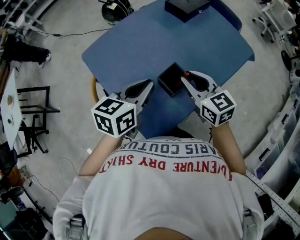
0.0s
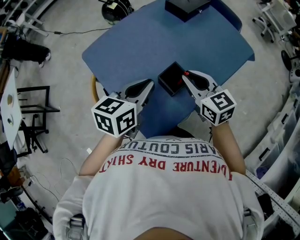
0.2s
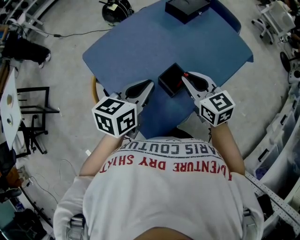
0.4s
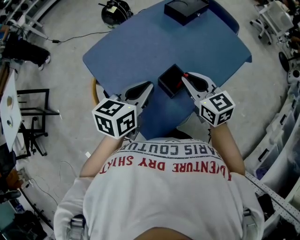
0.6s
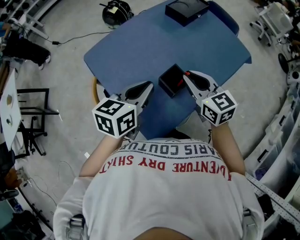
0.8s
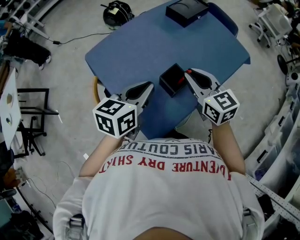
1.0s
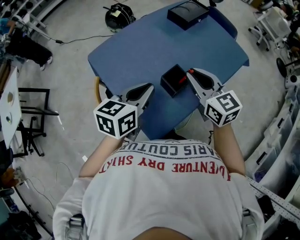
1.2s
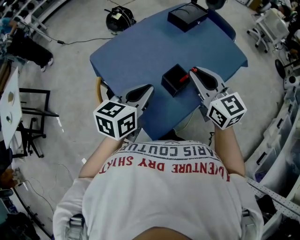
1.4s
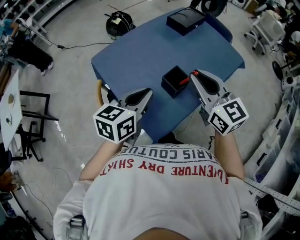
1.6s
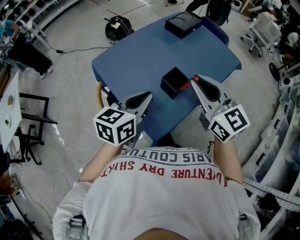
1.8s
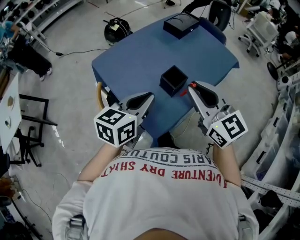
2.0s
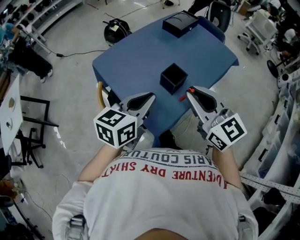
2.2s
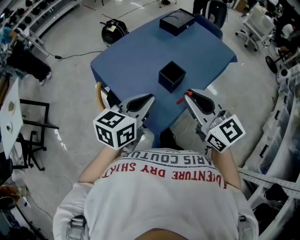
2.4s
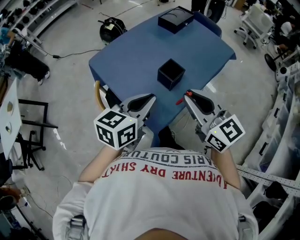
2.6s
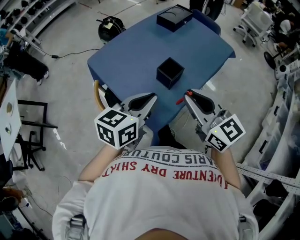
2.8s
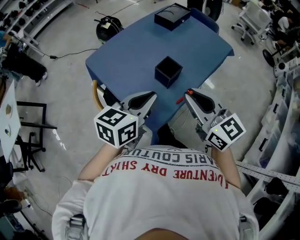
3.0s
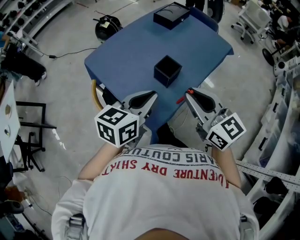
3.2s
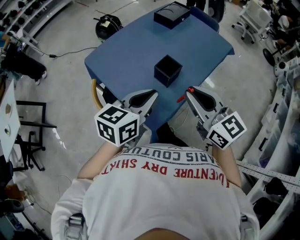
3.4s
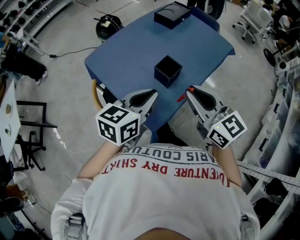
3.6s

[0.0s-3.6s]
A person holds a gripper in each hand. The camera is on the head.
0.0s to 1.8s: The right gripper shifts roughly 20 cm upward and backward, while the left gripper goes about 10 cm backward.
1.8s to 3.6s: The right gripper is displaced backward by approximately 5 cm; the left gripper changes place by approximately 5 cm.

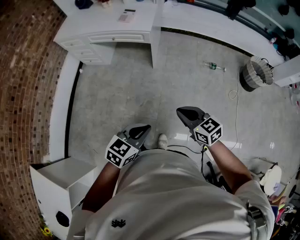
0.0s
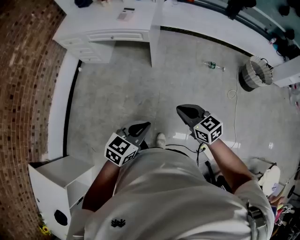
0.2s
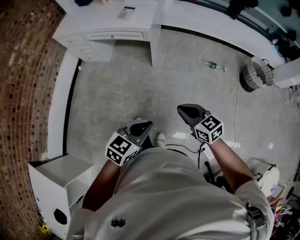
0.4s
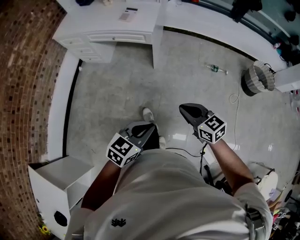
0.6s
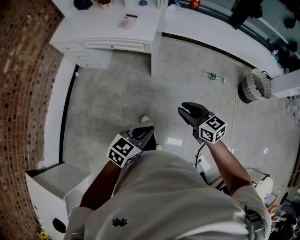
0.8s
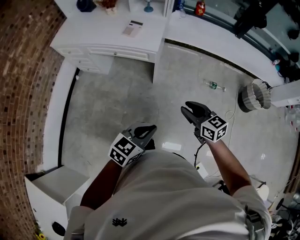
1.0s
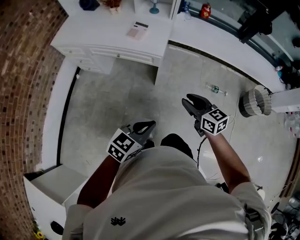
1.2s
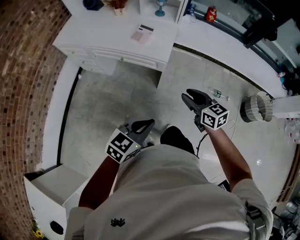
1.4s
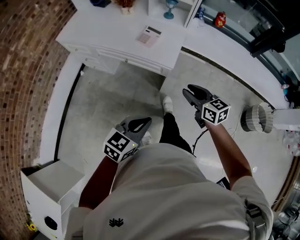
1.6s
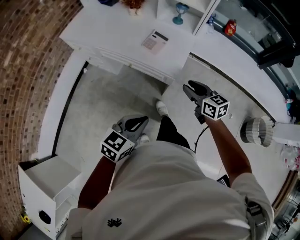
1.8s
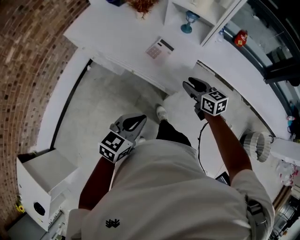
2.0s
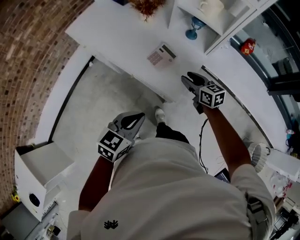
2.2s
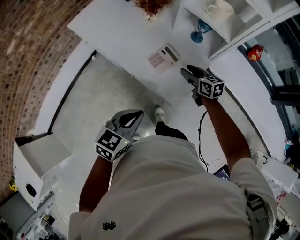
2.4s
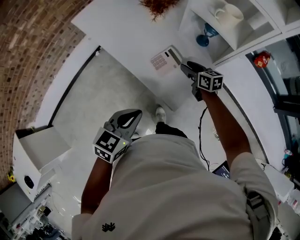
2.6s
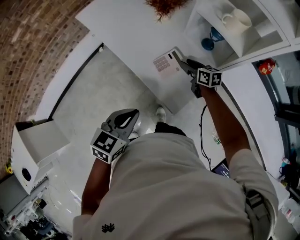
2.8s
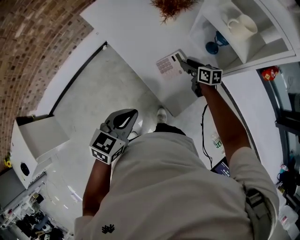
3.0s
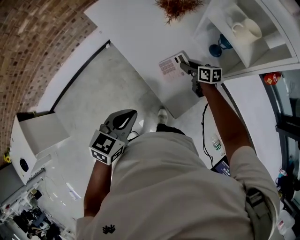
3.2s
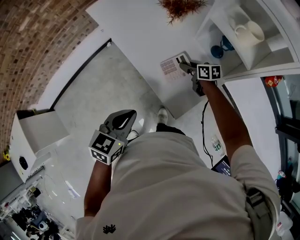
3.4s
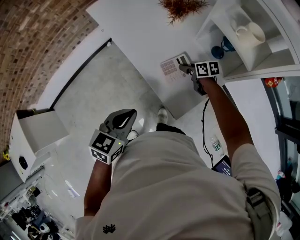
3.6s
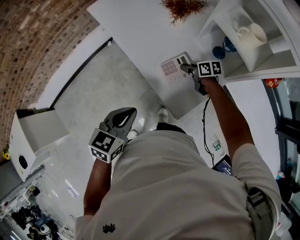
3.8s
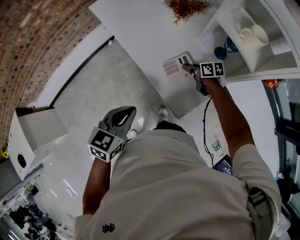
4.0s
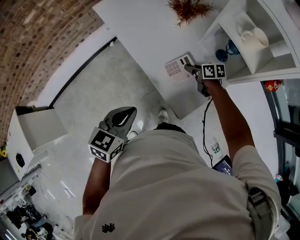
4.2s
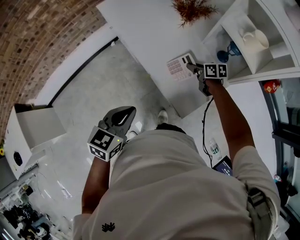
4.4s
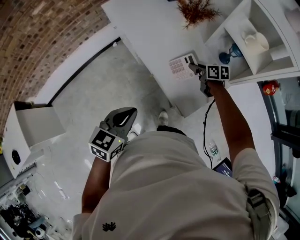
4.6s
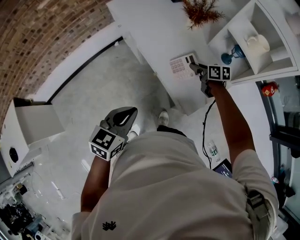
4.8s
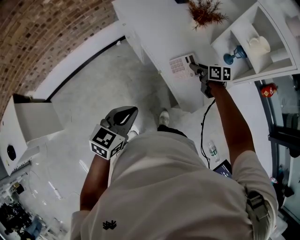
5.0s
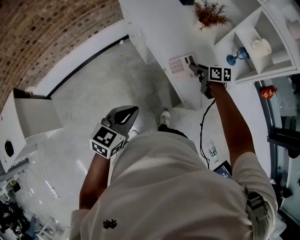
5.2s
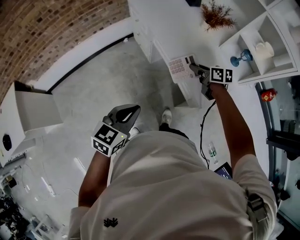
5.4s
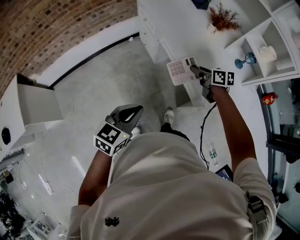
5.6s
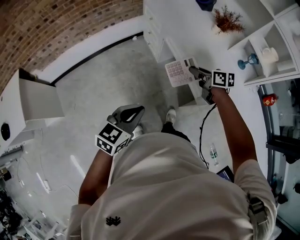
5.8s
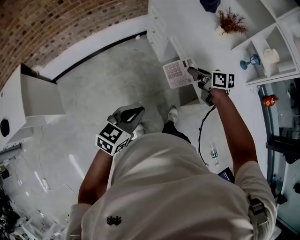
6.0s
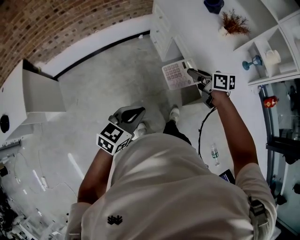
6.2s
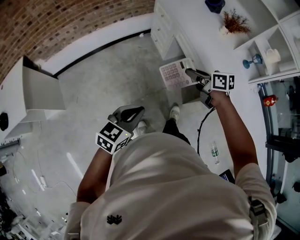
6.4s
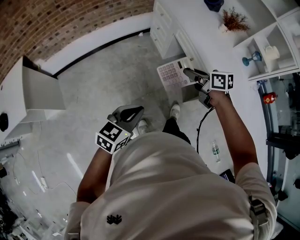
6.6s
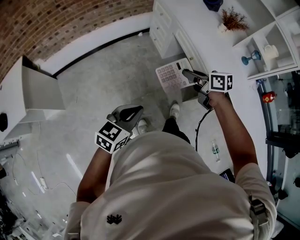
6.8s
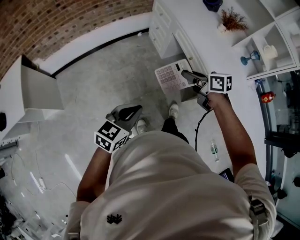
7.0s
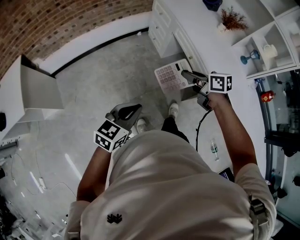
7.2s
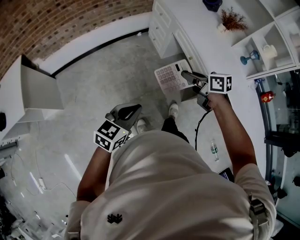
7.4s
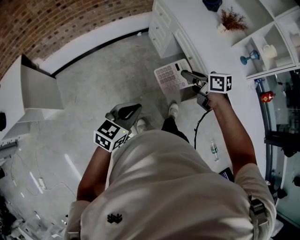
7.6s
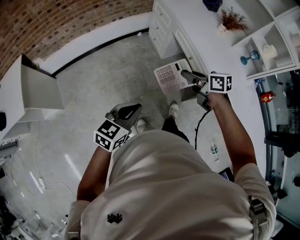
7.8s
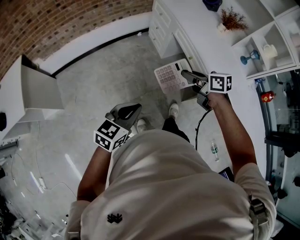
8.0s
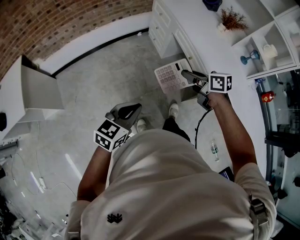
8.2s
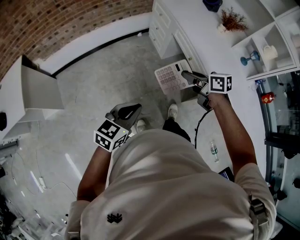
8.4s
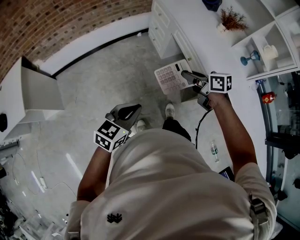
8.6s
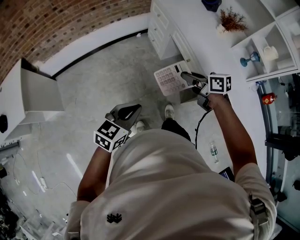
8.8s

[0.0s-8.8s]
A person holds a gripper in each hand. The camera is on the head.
0.0s to 1.4s: The grippers both shift forward by roughly 30 cm. The right gripper opens up.
1.4s to 3.0s: The right gripper moves roughly 60 cm, and rotates about 30 degrees. Meanwhile the left gripper shifts by roughly 35 cm, and rotates approximately 40 degrees.
3.0s to 4.4s: The grippers both shift to the left by approximately 5 cm. The right gripper closes its fingers.
4.4s to 5.8s: The left gripper shifts some 25 cm to the left and backward. Meanwhile the right gripper is displaced to the left, backward and upward by approximately 30 cm.
5.8s to 7.4s: The two grippers go some 15 cm to the left and backward.
7.4s to 8.8s: The grippers stay close to where they were, moving slightly.

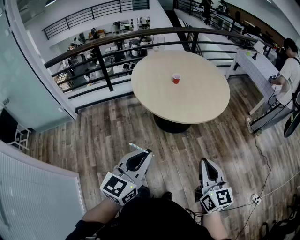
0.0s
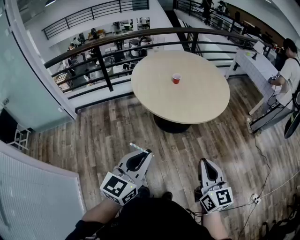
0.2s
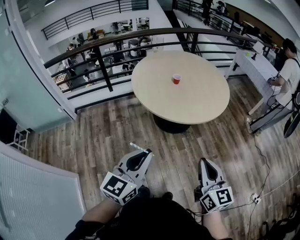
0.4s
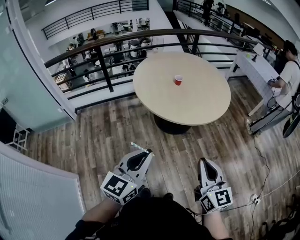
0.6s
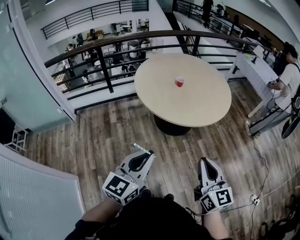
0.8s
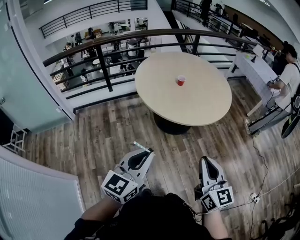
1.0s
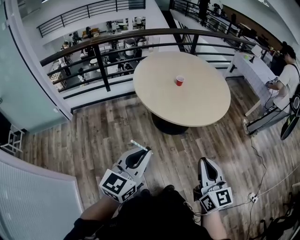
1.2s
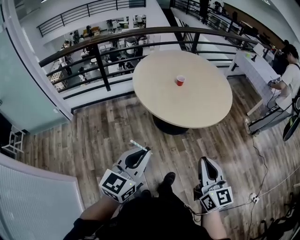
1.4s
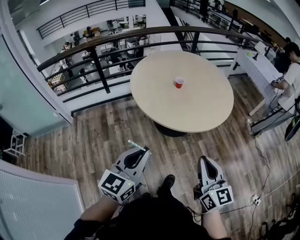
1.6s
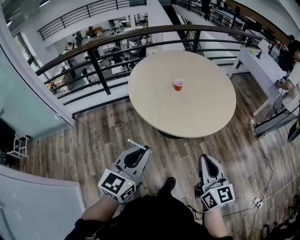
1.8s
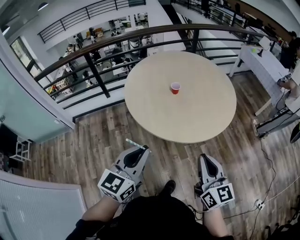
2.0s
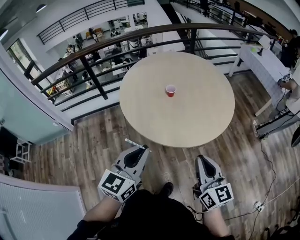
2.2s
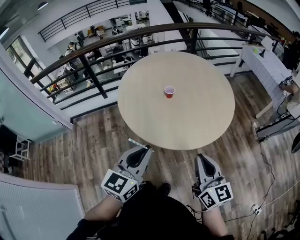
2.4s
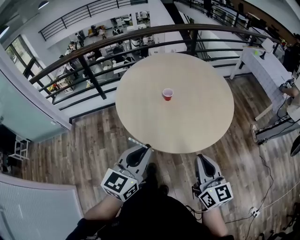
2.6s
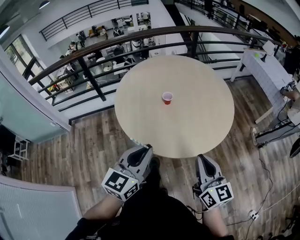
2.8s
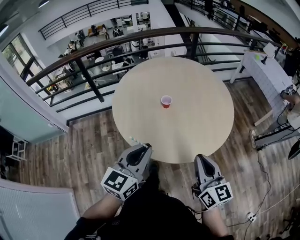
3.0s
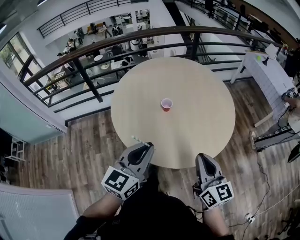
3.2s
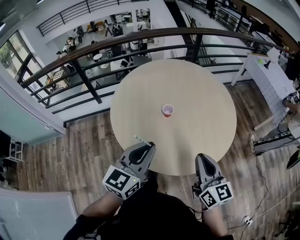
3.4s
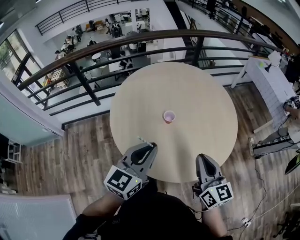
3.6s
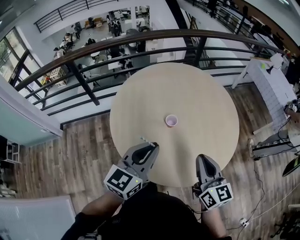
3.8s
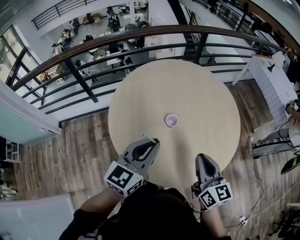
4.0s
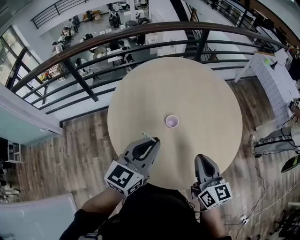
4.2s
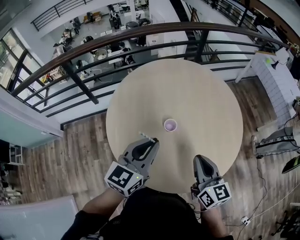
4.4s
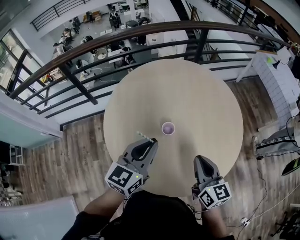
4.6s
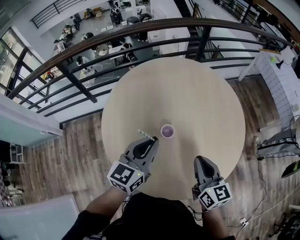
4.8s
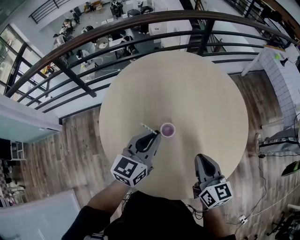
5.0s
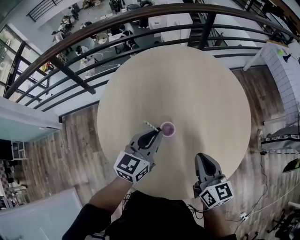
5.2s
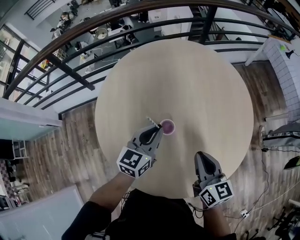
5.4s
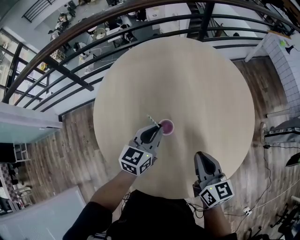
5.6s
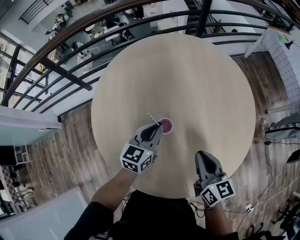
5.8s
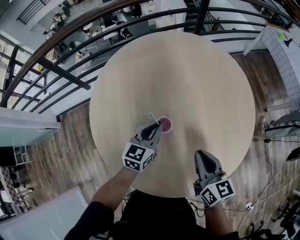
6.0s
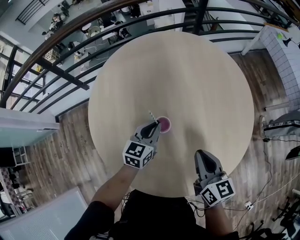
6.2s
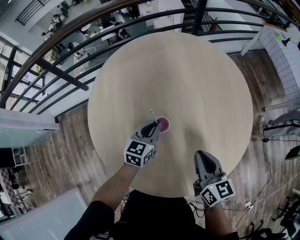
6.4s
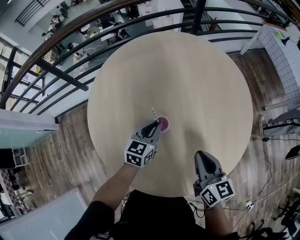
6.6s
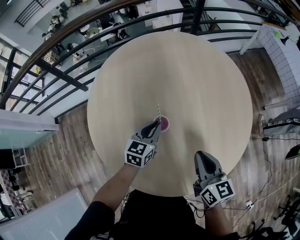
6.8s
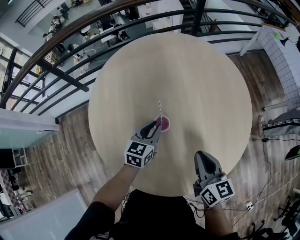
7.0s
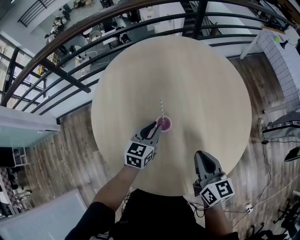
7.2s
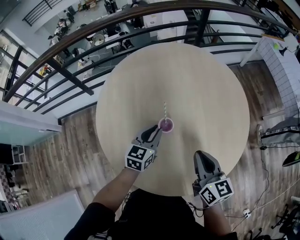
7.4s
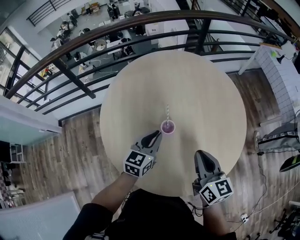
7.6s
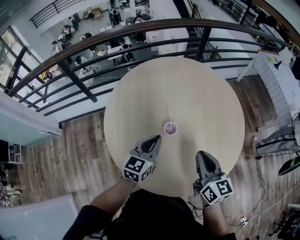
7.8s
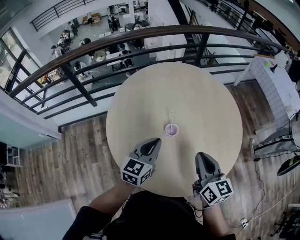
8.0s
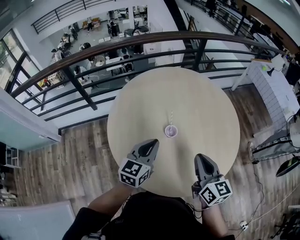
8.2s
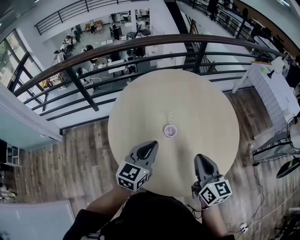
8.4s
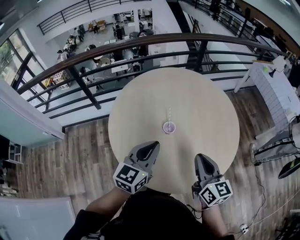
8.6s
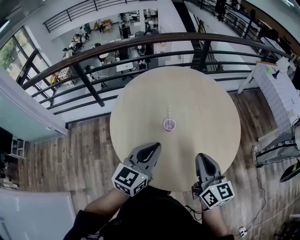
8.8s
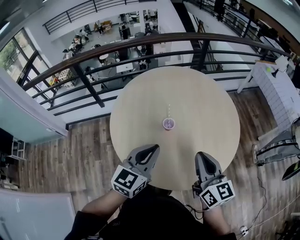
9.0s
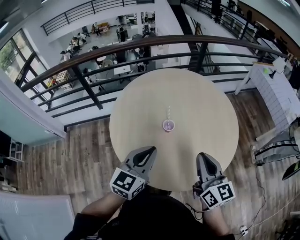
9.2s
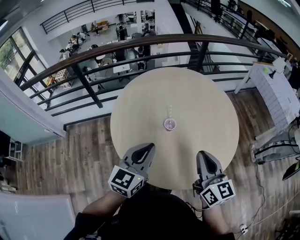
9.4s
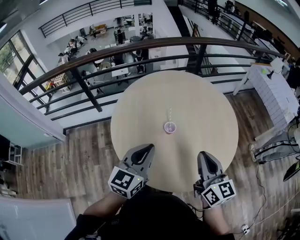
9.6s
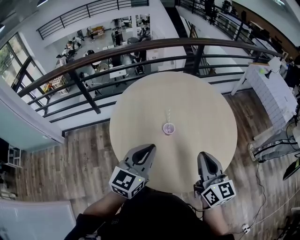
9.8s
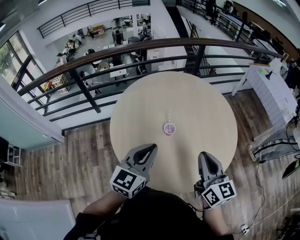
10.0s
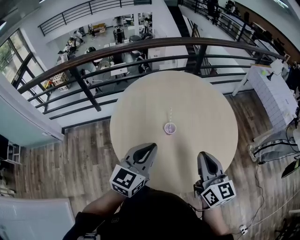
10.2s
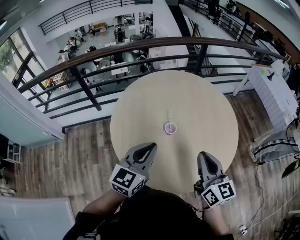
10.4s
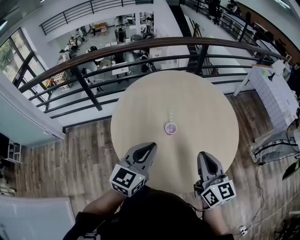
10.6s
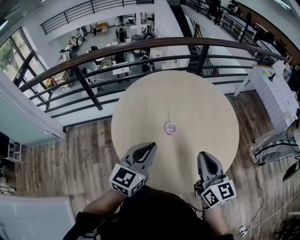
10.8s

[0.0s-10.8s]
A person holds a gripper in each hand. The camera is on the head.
0.0s to 1.6s: Both grippers travel together forward and to the left, roughly 10 cm.
1.6s to 3.0s: Both grippers travel together forward and to the right, roughly 30 cm.
3.0s to 4.6s: The grippers both shift forward by roughly 25 cm.
4.6s to 6.2s: The right gripper travels downward and forward by roughly 10 cm. Meanwhile the left gripper is displaced downward and forward by about 25 cm.
6.2s to 7.8s: The right gripper goes approximately 10 cm upward. Meanwhile the left gripper shifts roughly 15 cm upward and backward.
7.8s to 9.2s: Both grippers move backward and upward, roughly 15 cm.
9.2s to 10.8s: The grippers stay close to where they were, moving slightly.
